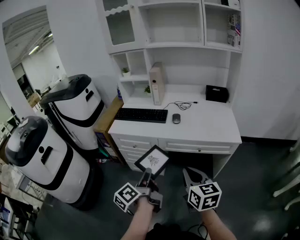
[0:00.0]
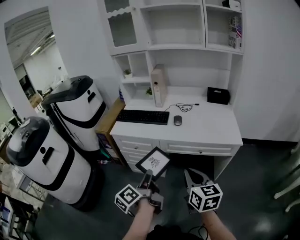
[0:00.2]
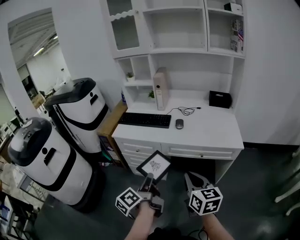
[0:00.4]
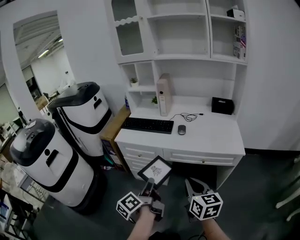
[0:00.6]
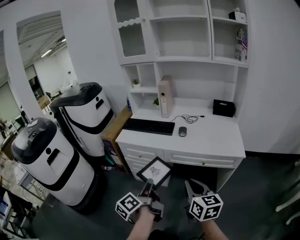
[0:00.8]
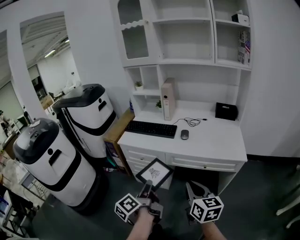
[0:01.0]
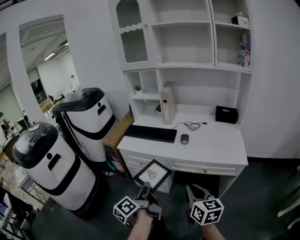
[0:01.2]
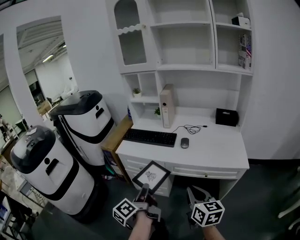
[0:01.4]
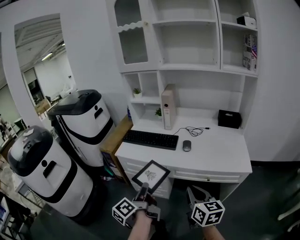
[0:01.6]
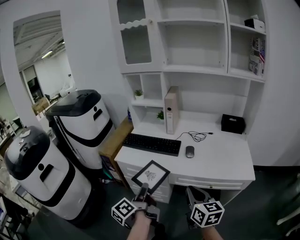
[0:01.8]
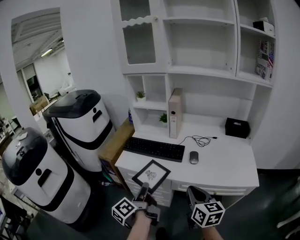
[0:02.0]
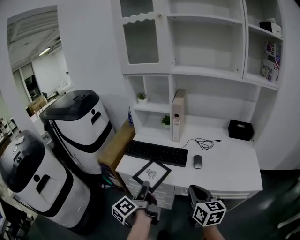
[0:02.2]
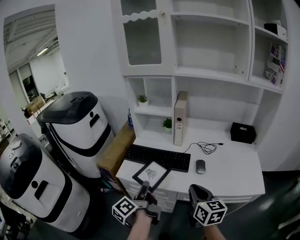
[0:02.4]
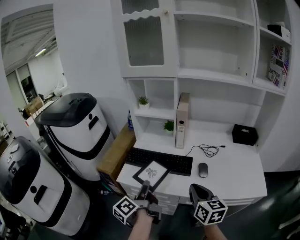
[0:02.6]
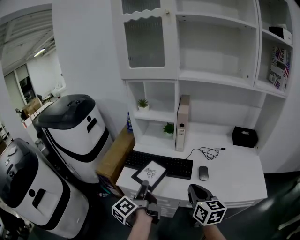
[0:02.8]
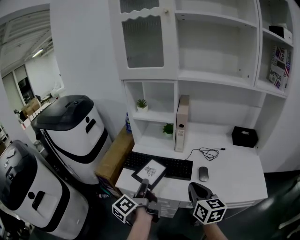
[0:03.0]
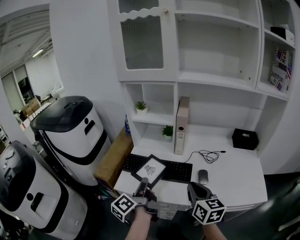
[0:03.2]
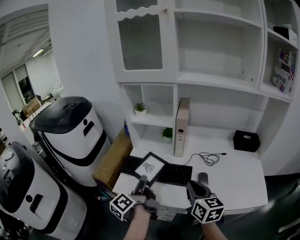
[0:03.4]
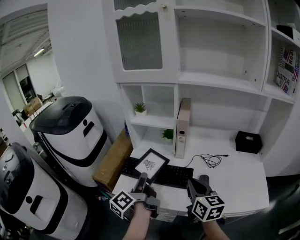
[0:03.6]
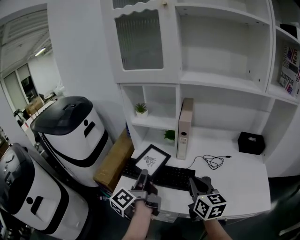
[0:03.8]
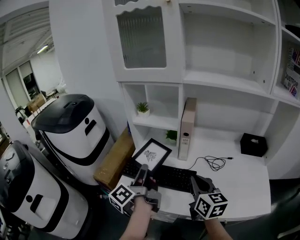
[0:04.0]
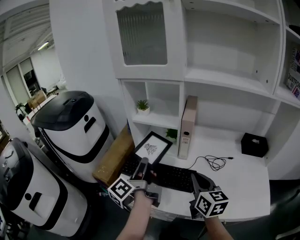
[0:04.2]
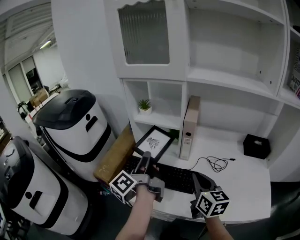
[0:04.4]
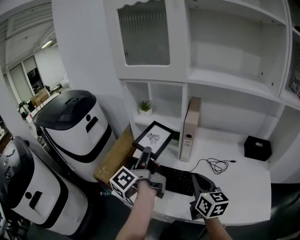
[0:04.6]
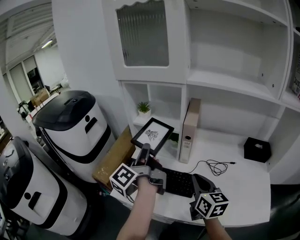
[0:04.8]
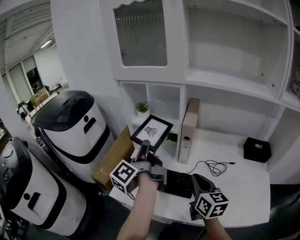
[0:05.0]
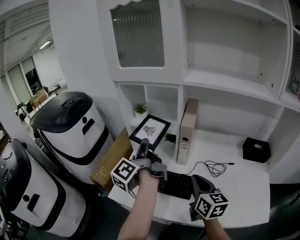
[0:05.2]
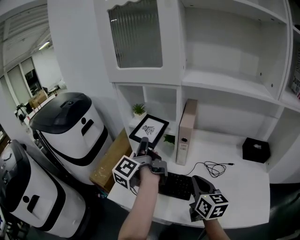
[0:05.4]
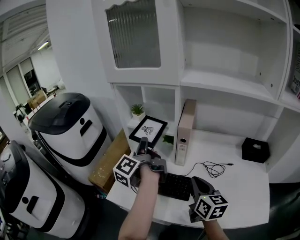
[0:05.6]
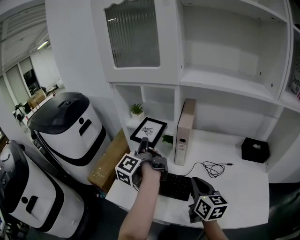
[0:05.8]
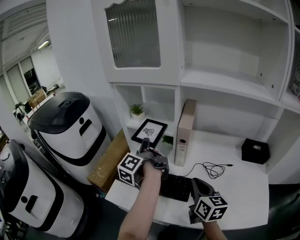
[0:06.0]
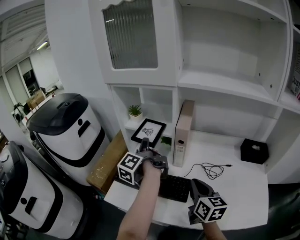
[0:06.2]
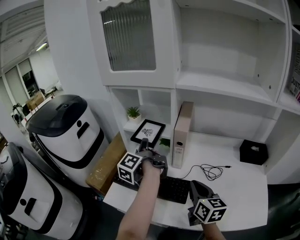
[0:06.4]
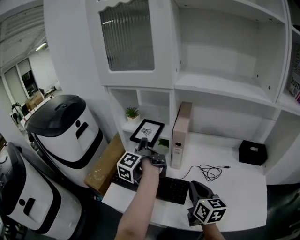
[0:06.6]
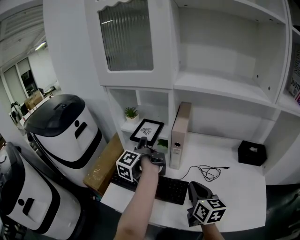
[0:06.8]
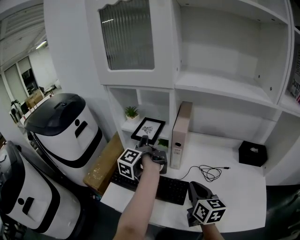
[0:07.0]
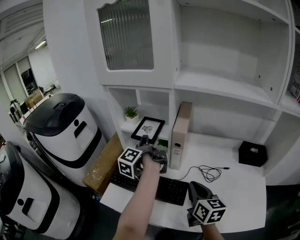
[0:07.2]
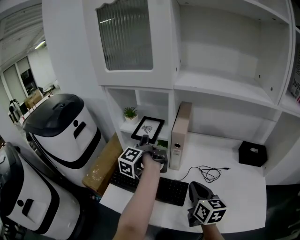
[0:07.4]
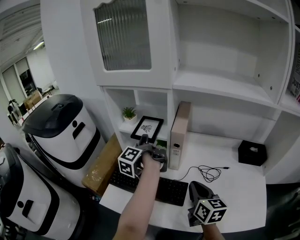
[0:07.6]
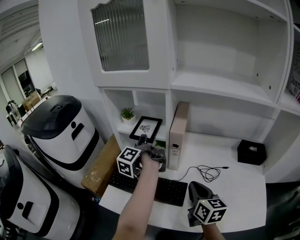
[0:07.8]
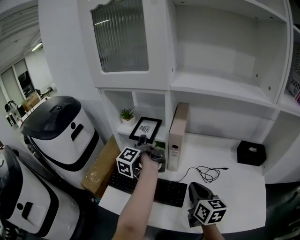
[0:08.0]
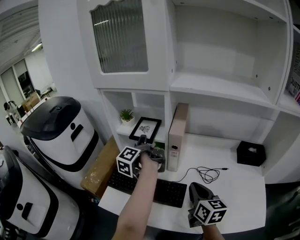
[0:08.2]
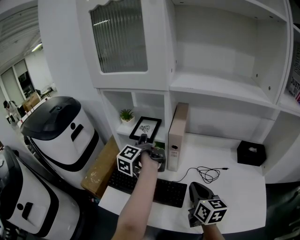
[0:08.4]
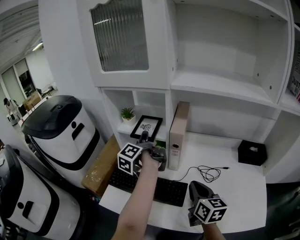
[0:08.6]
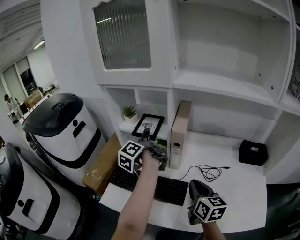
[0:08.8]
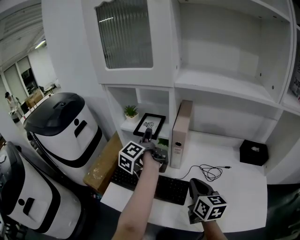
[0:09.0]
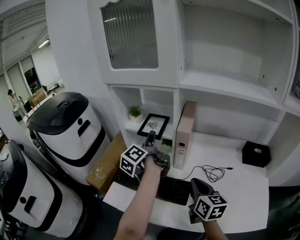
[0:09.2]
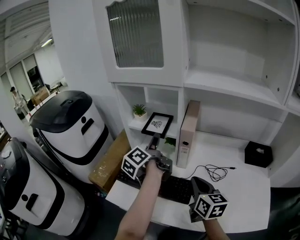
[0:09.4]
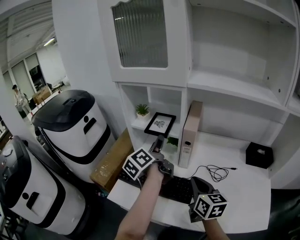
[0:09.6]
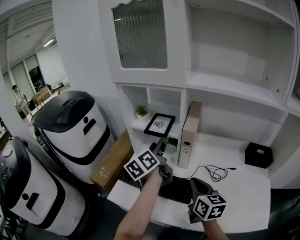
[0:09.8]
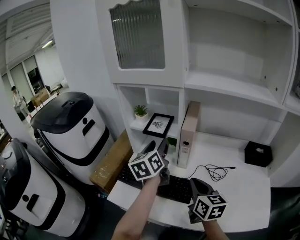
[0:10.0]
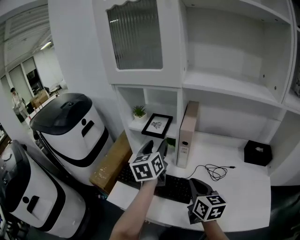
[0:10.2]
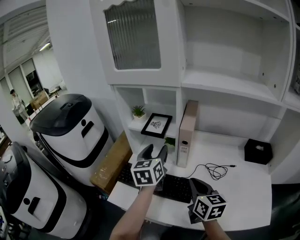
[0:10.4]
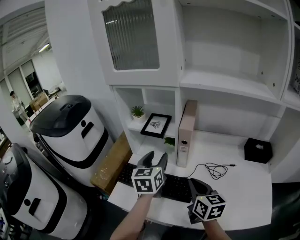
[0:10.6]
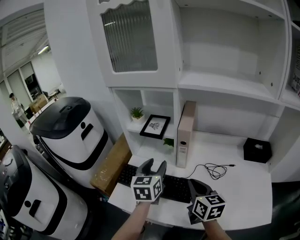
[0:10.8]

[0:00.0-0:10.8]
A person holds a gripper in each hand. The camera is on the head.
0:00.0 to 0:01.6: The two grippers go approximately 10 cm forward.
0:01.6 to 0:03.0: The two grippers go approximately 30 cm forward.
0:03.0 to 0:04.6: The left gripper travels forward and upward by roughly 20 cm, while the right gripper travels forward by approximately 15 cm.
0:04.6 to 0:06.2: The left gripper goes approximately 10 cm forward.
0:06.2 to 0:07.8: The left gripper ends up roughly 5 cm from where it was.
0:07.8 to 0:09.2: The left gripper opens its fingers.
0:09.2 to 0:10.8: The left gripper shifts approximately 10 cm backward, and rolls clockwise, seen from behind, by roughly 70 degrees.

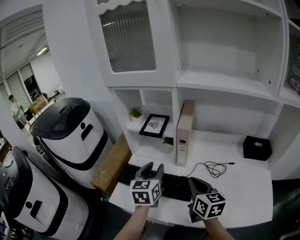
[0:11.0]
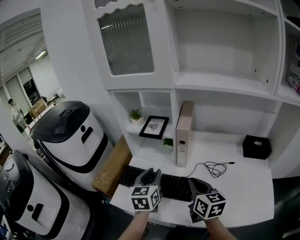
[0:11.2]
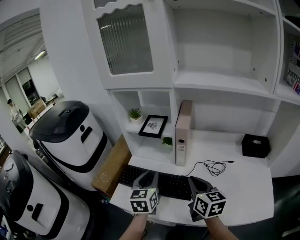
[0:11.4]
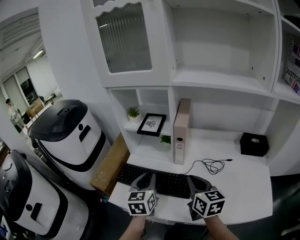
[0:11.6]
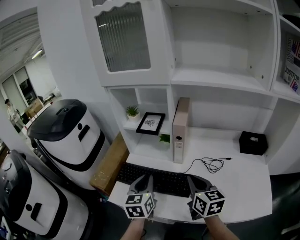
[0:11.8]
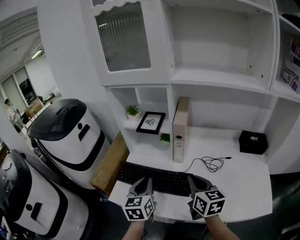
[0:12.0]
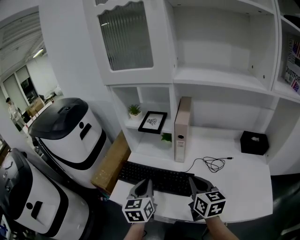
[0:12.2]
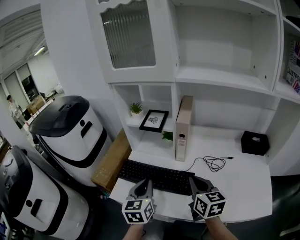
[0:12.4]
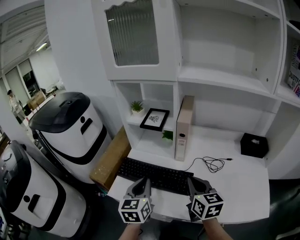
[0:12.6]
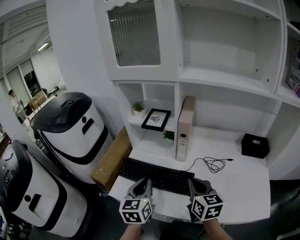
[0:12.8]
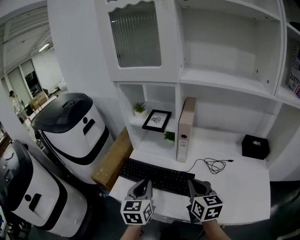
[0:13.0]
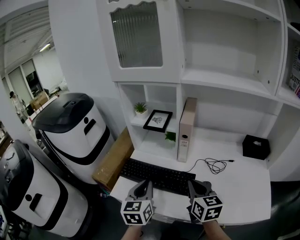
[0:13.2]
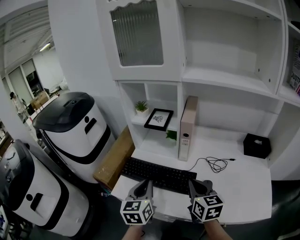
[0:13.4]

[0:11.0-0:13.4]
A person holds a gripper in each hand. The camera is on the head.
0:11.0 to 0:12.2: The left gripper travels backward by roughly 10 cm, and closes its fingers.
0:12.2 to 0:13.4: The grippers move only a little.

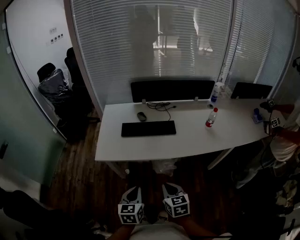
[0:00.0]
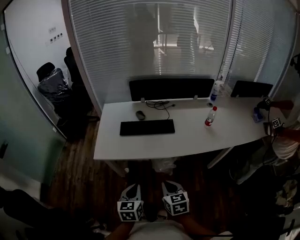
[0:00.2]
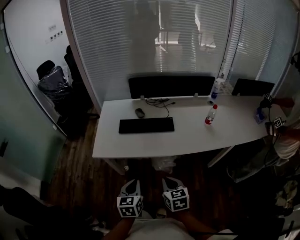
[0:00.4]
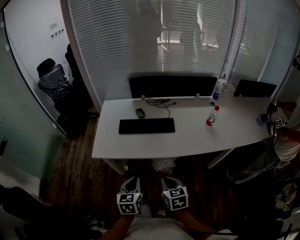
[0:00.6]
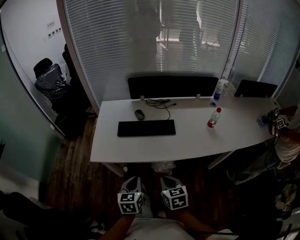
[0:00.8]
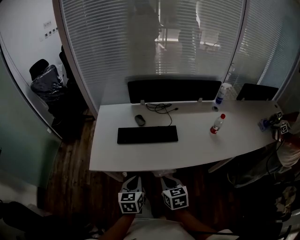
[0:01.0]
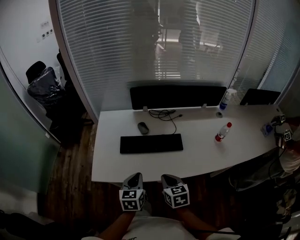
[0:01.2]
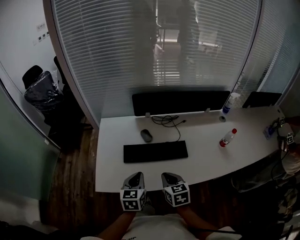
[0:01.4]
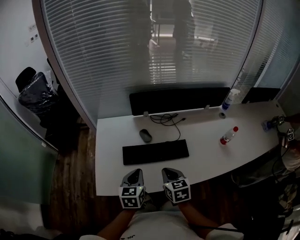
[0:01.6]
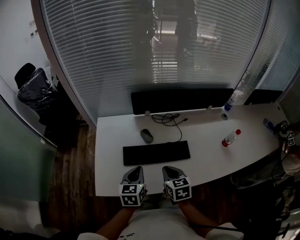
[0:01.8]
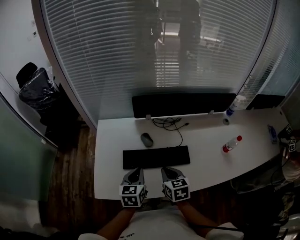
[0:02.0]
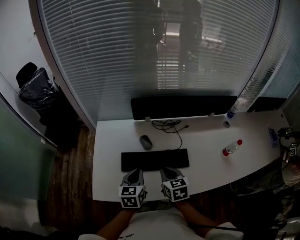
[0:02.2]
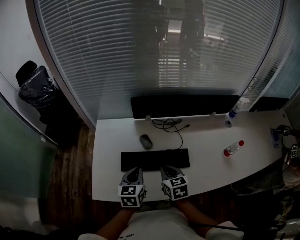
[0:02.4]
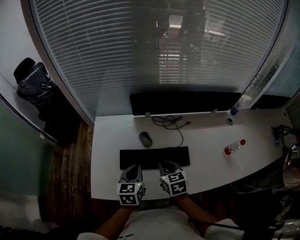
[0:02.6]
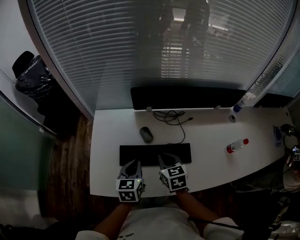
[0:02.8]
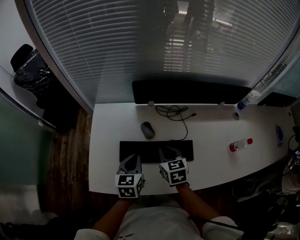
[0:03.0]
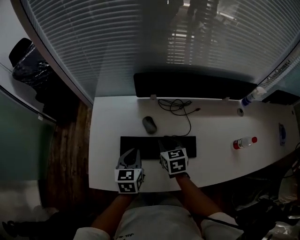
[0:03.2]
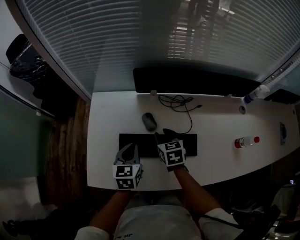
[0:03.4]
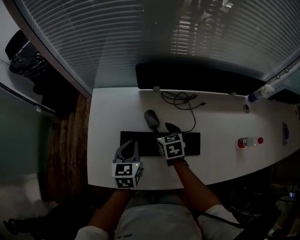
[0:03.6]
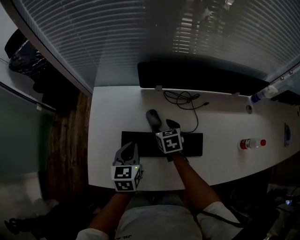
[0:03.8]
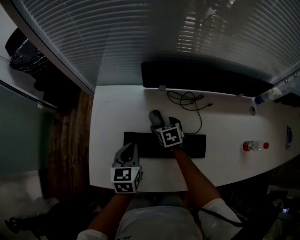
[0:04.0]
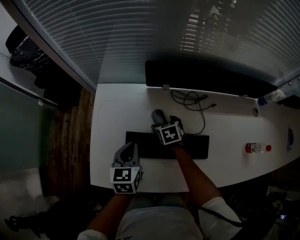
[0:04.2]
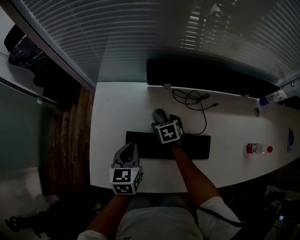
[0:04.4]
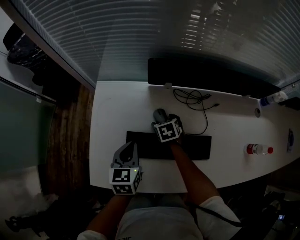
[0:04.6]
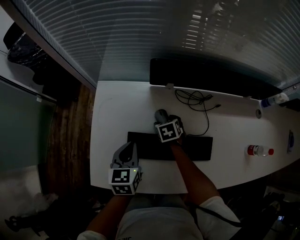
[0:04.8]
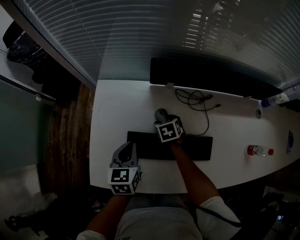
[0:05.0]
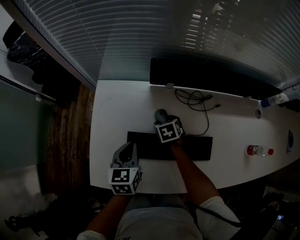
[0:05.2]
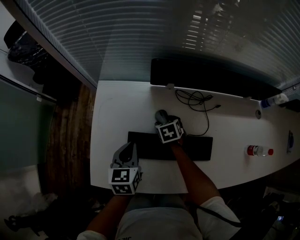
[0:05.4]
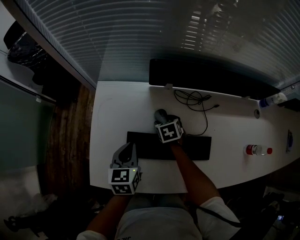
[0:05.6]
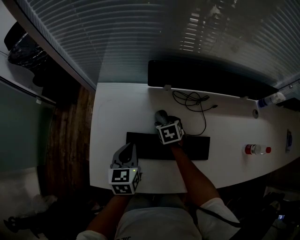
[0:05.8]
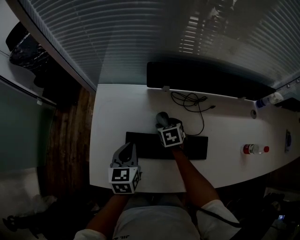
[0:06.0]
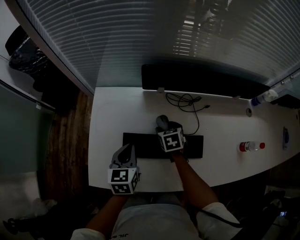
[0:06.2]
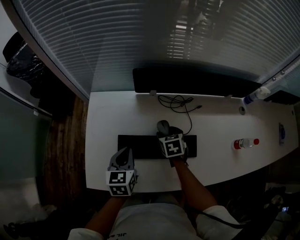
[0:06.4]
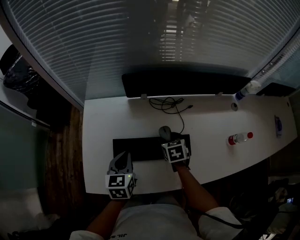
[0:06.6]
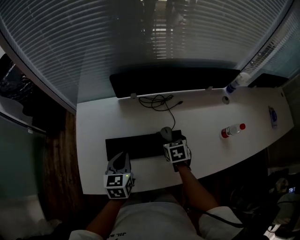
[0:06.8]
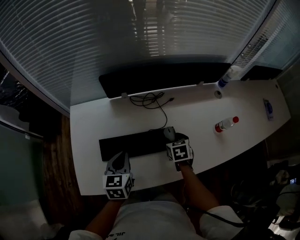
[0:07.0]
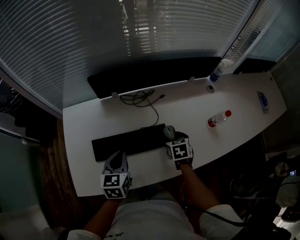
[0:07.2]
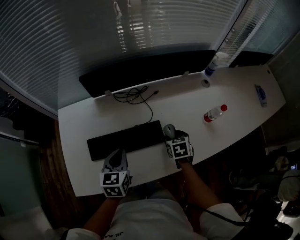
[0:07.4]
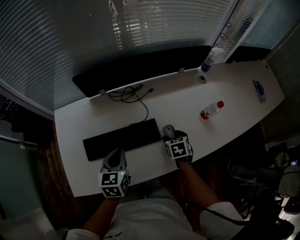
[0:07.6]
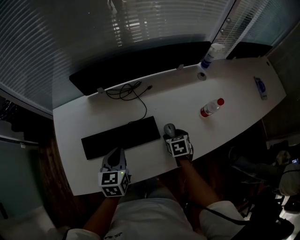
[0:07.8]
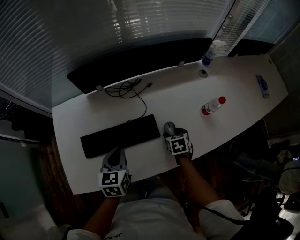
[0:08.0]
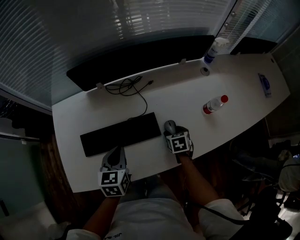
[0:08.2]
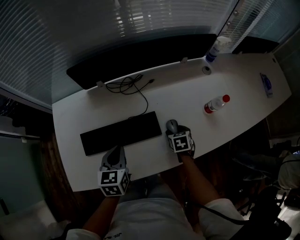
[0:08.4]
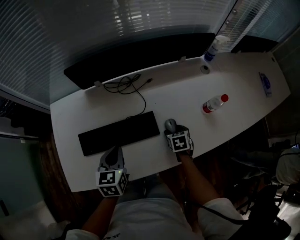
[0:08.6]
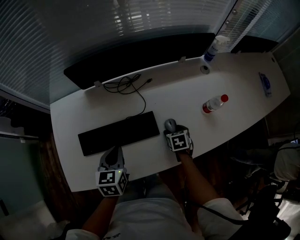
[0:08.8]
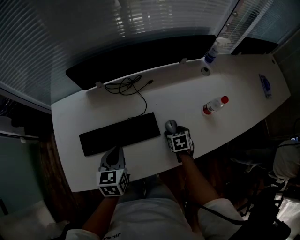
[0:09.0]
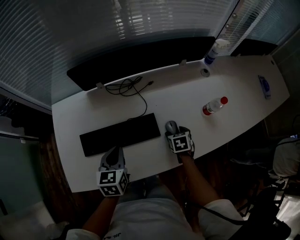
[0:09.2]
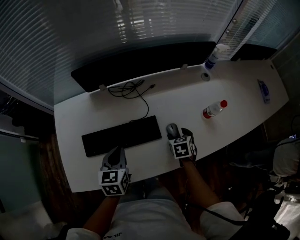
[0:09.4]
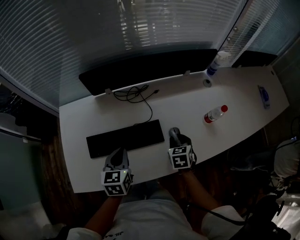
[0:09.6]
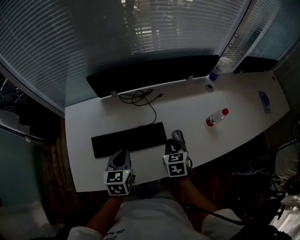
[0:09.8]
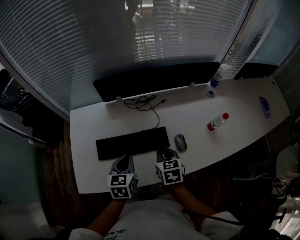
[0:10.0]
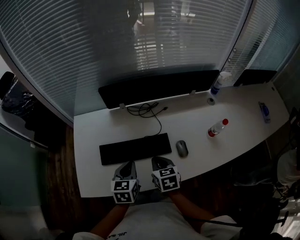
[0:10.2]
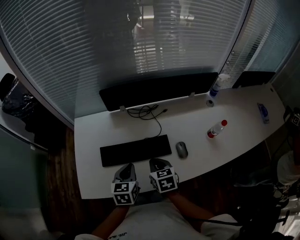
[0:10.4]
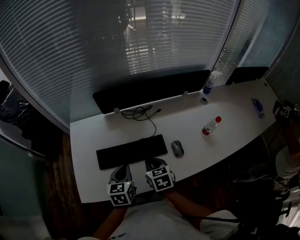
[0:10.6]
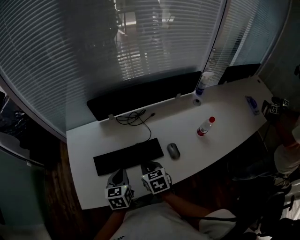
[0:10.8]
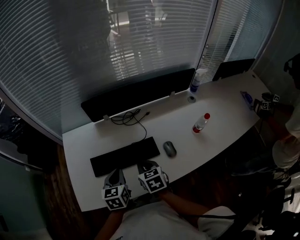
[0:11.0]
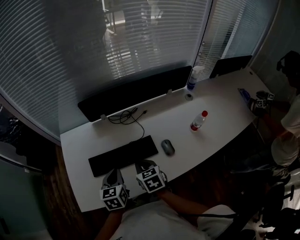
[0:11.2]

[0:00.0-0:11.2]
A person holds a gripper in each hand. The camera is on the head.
0:00.0 to 0:01.6: The two grippers go some 35 cm forward.
0:01.6 to 0:03.2: Both grippers move forward, roughly 15 cm.
0:03.2 to 0:04.8: The left gripper shifts roughly 10 cm to the left and forward. The right gripper heads downward and forward, covering roughly 20 cm, turns by about 20 degrees, and opens up.
0:04.8 to 0:06.4: The left gripper changes place by approximately 5 cm; the right gripper travels upward, backward and to the right by approximately 10 cm.
0:06.4 to 0:08.0: The left gripper travels to the right by some 20 cm; the right gripper travels to the right by about 30 cm, and swivels about 20 degrees.
0:08.0 to 0:09.6: The right gripper heads upward, covering roughly 10 cm, and closes its fingers.
0:09.6 to 0:11.2: The left gripper changes place by some 5 cm; the right gripper moves to the left and upward, roughly 20 cm, and changes its angle by about 20 degrees.
